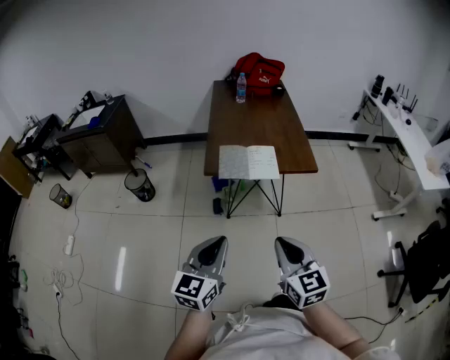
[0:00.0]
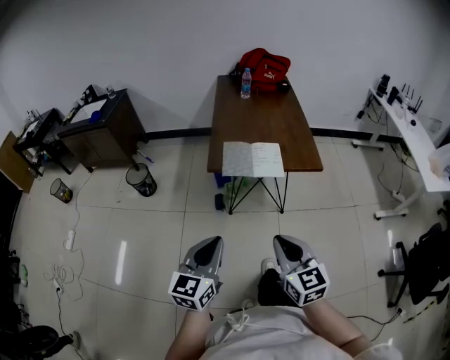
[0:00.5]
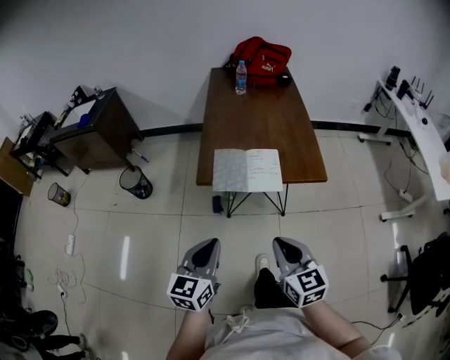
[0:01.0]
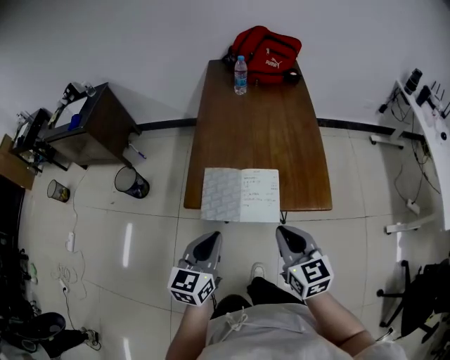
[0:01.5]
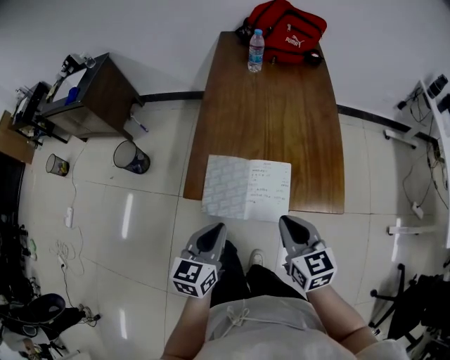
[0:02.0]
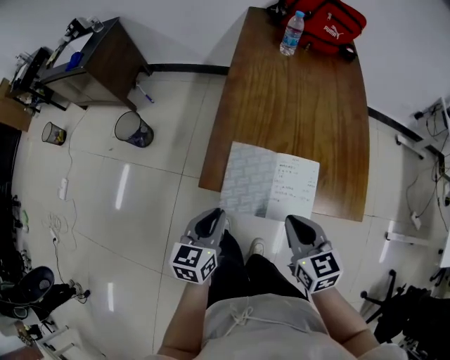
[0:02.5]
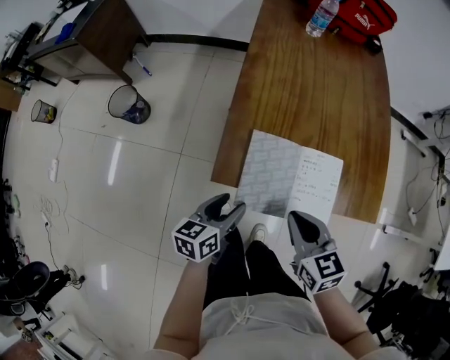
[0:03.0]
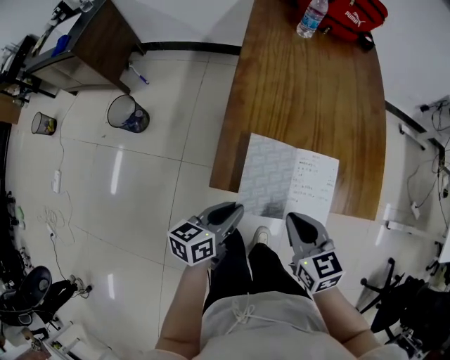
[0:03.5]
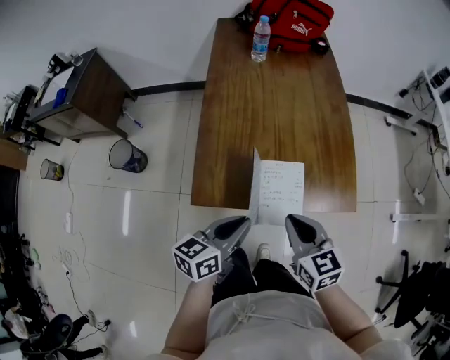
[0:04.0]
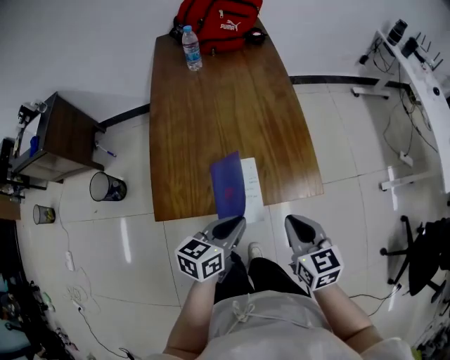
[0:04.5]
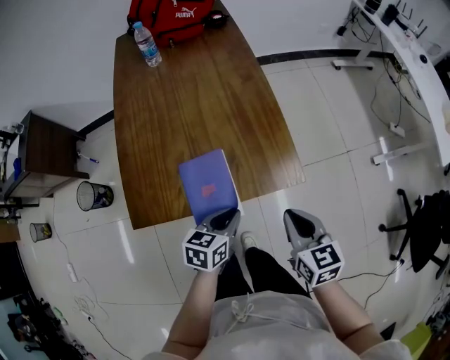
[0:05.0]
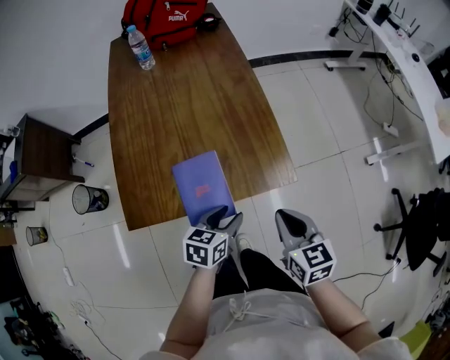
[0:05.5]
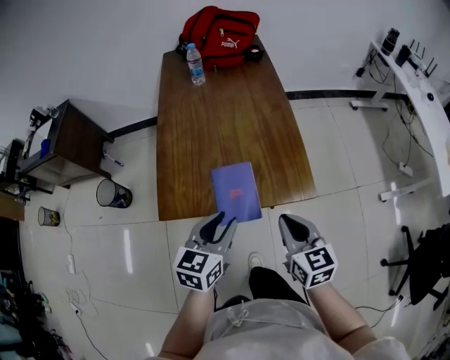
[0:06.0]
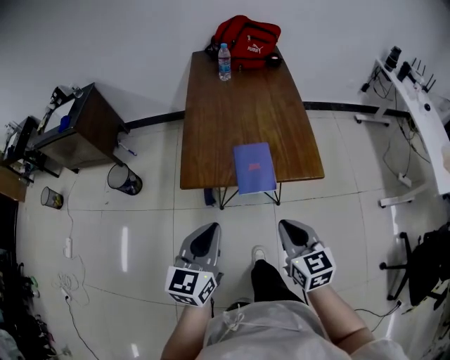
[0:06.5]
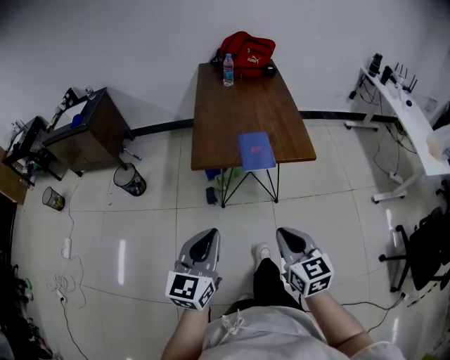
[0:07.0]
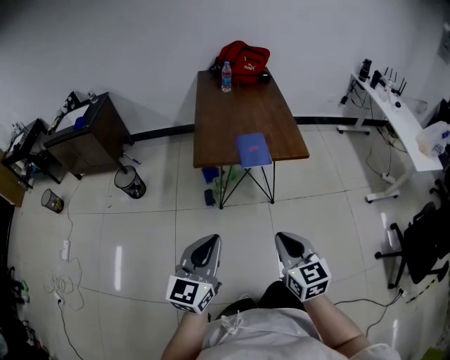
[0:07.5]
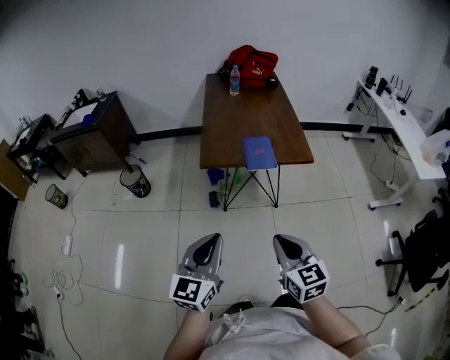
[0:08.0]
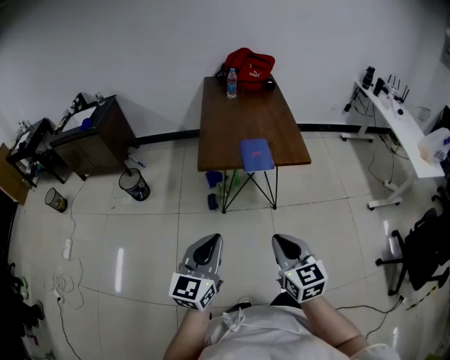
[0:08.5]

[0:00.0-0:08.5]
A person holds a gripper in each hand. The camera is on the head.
0.0 to 2.0 s: The two grippers go about 35 cm forward. The left gripper turns by approximately 20 degrees.
2.0 to 4.0 s: The right gripper goes to the left and returns, about 10 cm each way; the left gripper travels downward and back again, roughly 15 cm each way, turns by some 30 degrees, and opens, then closes again.
4.0 to 6.5 s: The left gripper is displaced backward and upward by some 20 cm, changes its angle by approximately 30 degrees, and opens and closes again. The right gripper shifts roughly 20 cm backward and to the right.
6.5 to 8.5 s: The two grippers go roughly 25 cm backward.

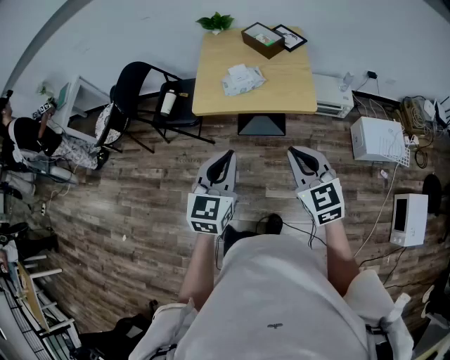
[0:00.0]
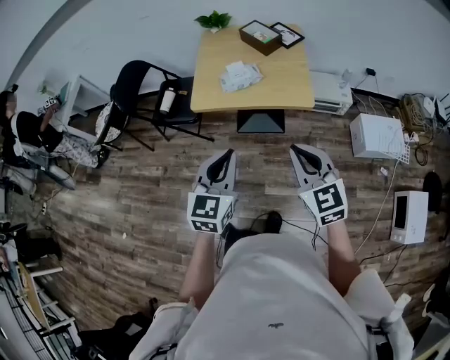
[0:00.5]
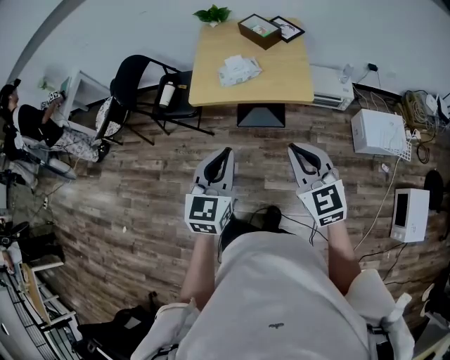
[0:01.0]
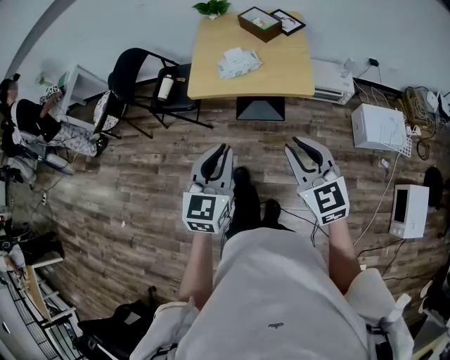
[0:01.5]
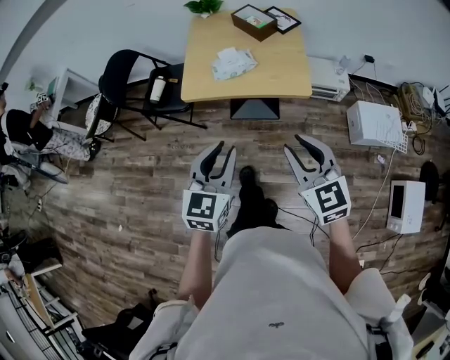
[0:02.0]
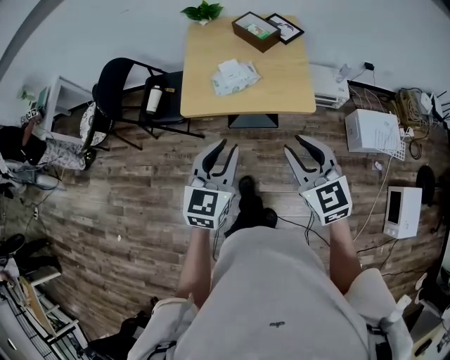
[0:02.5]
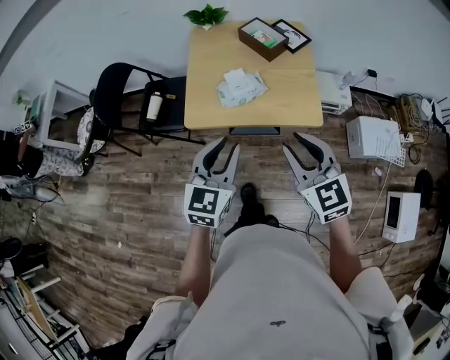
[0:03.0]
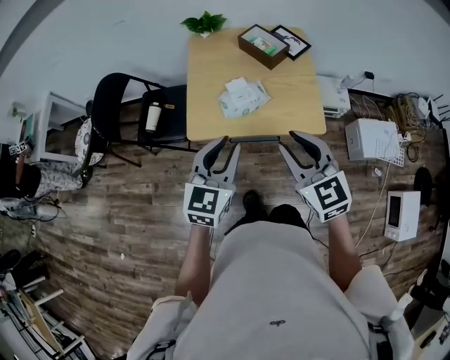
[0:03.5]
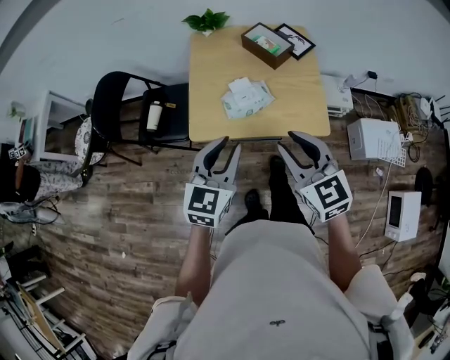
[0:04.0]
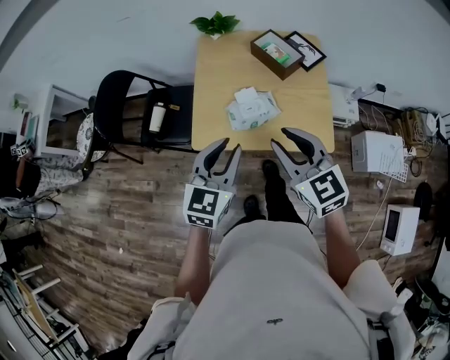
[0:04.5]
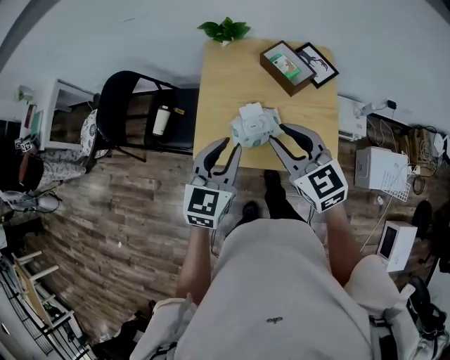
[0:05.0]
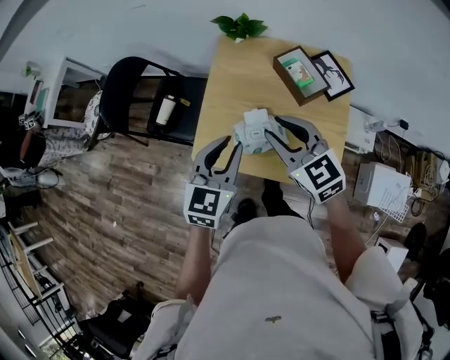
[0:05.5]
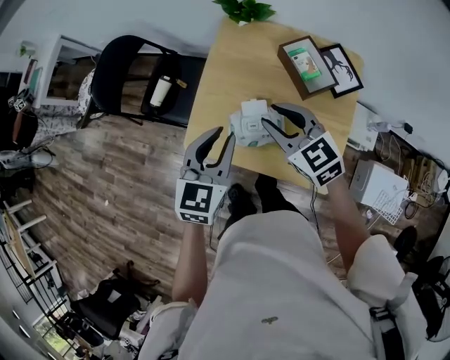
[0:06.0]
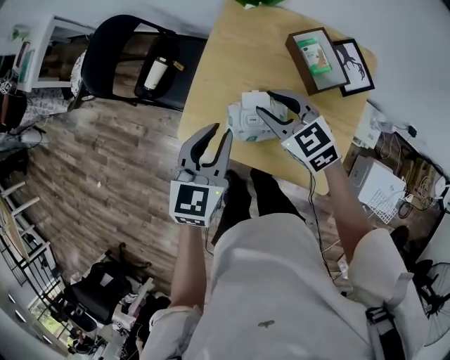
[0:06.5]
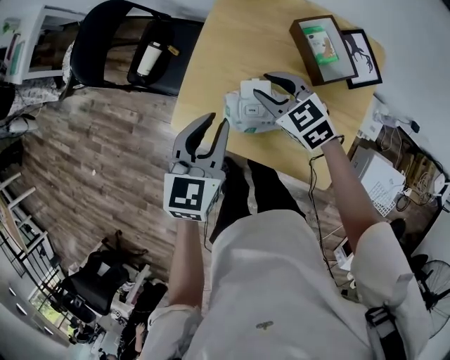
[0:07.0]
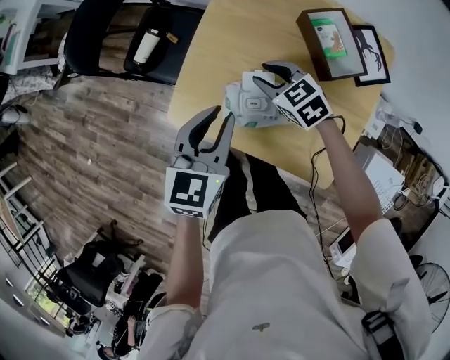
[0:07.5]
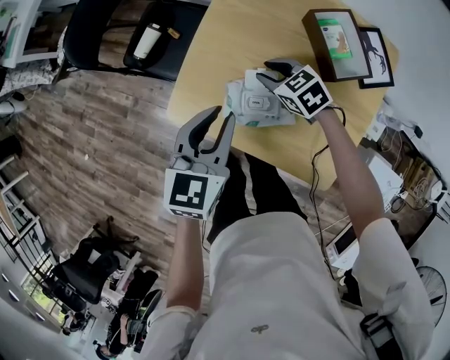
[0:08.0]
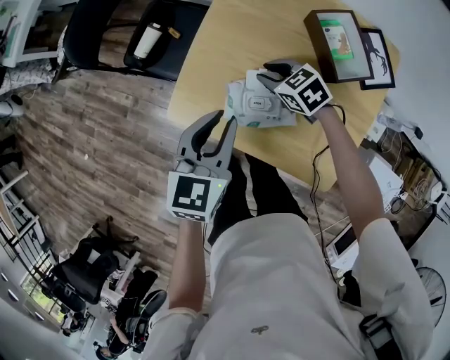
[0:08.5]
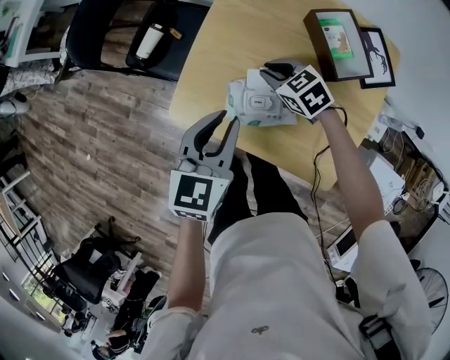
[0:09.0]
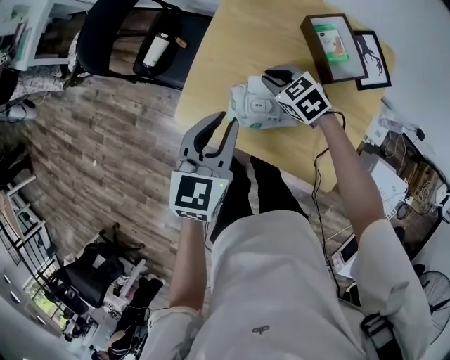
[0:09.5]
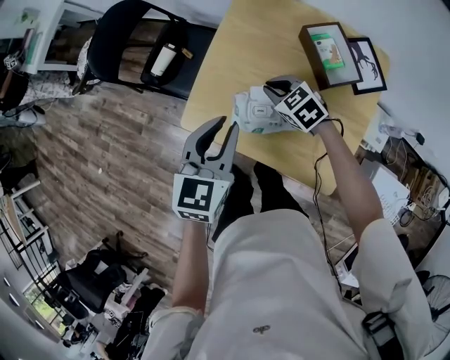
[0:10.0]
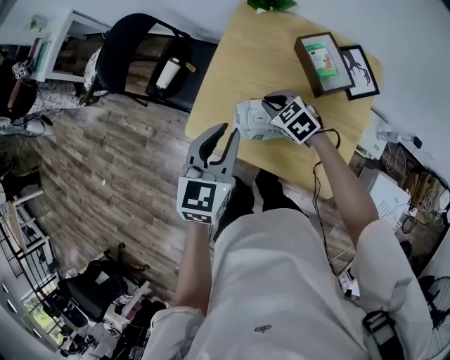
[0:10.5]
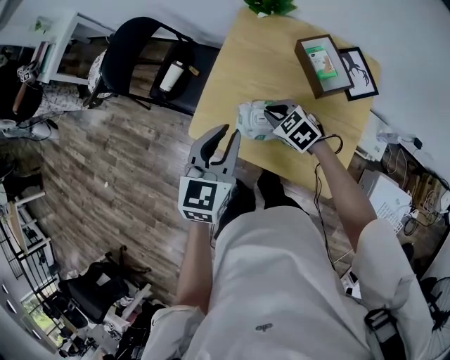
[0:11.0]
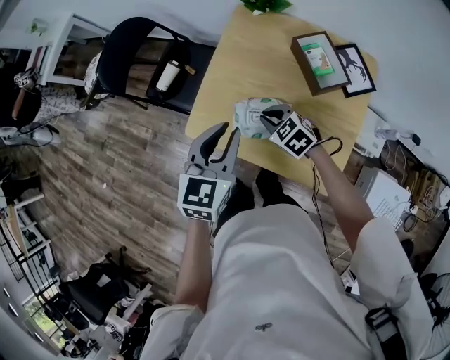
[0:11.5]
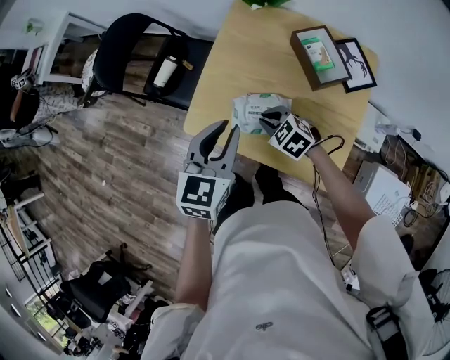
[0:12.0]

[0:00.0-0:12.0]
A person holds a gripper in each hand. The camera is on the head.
0.0 to 2.0 s: The right gripper opens its fingers.
2.0 to 4.0 s: The left gripper is displaced forward by roughly 25 cm. The right gripper travels forward and to the left by some 25 cm.
4.0 to 6.0 s: The left gripper moves roughly 20 cm, and turns by about 20 degrees; the right gripper changes place by about 30 cm, and swivels approximately 30 degrees.
6.0 to 8.0 s: The left gripper is displaced downward by roughly 10 cm, while the right gripper heads downward, covering about 25 cm, and turns by about 30 degrees.
8.0 to 10.0 s: The left gripper changes place by approximately 5 cm; the right gripper closes its fingers.
10.0 to 12.0 s: The right gripper goes some 10 cm backward.

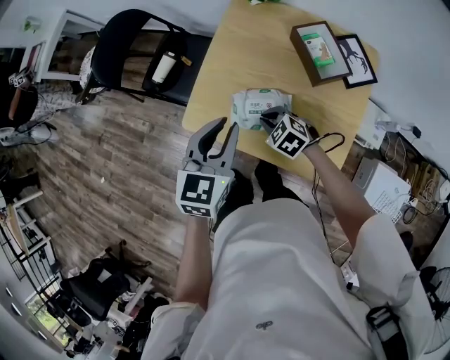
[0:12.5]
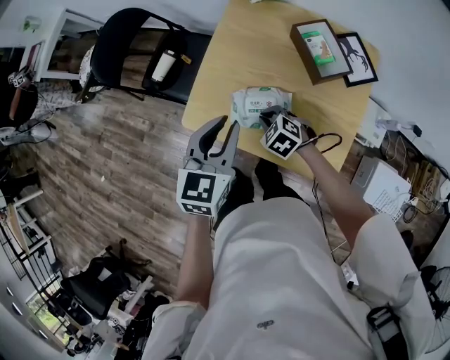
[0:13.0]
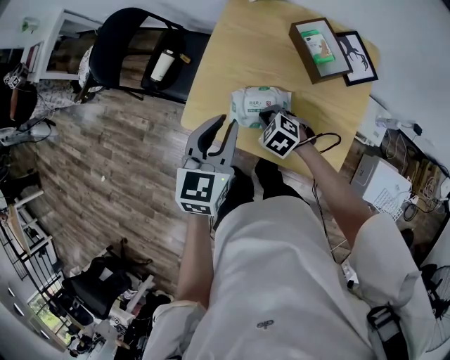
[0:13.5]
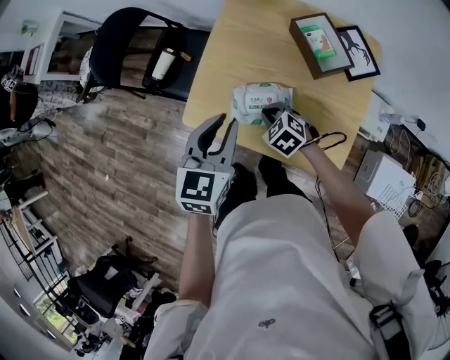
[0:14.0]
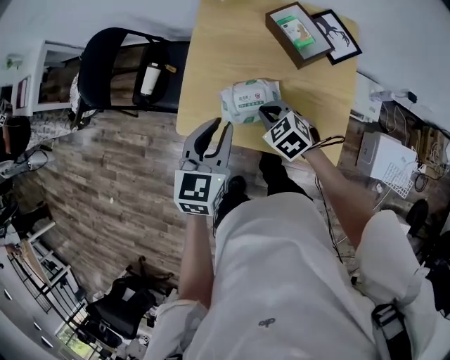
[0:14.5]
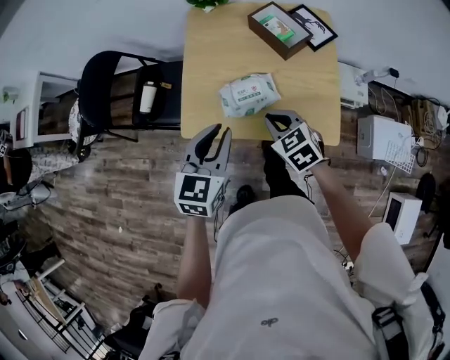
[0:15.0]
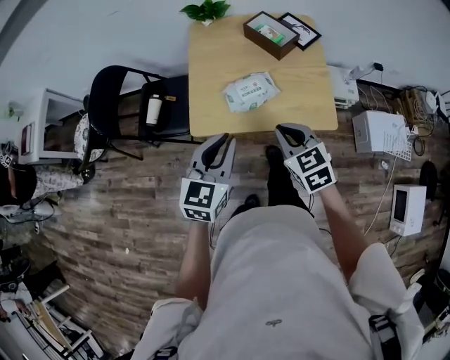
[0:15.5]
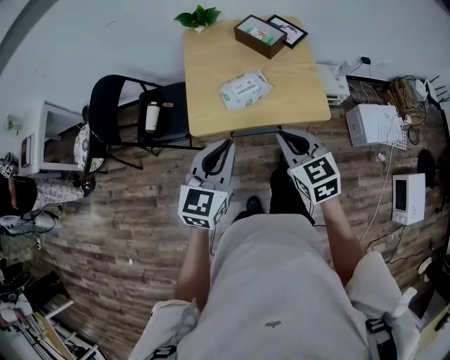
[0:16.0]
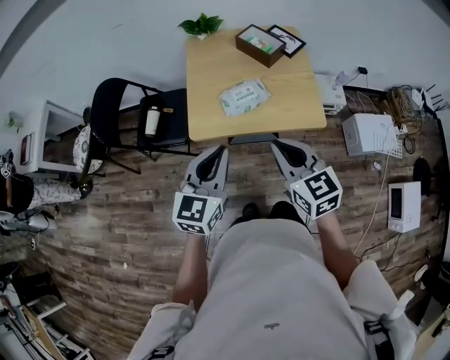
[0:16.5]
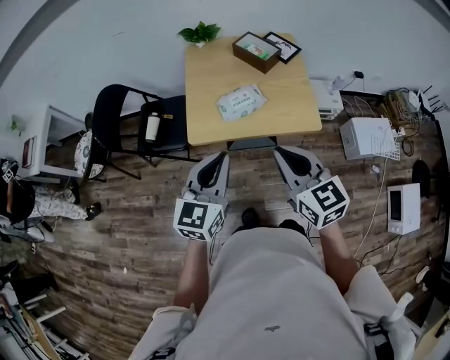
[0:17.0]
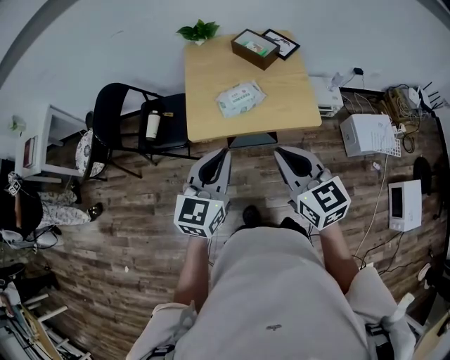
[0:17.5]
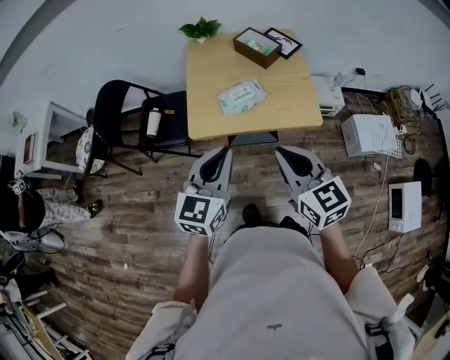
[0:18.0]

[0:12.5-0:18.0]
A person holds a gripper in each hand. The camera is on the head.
12.5 to 14.5 s: The right gripper changes place by approximately 5 cm.
14.5 to 16.0 s: The left gripper ends up some 25 cm from where it was, and changes its angle by approximately 30 degrees. Meanwhile the right gripper moves roughly 30 cm, and turns by approximately 40 degrees.
16.0 to 18.0 s: The right gripper heads upward and backward, covering approximately 10 cm. The left gripper shifts by approximately 5 cm.

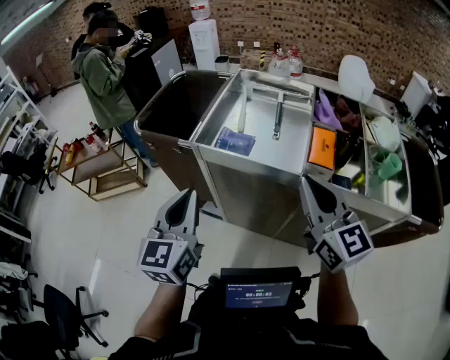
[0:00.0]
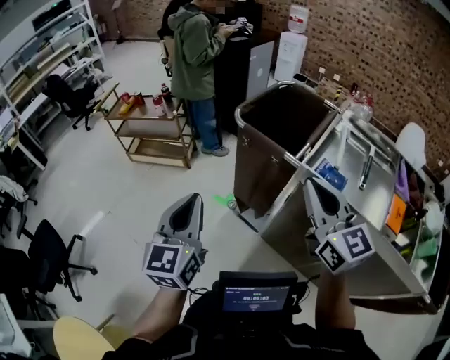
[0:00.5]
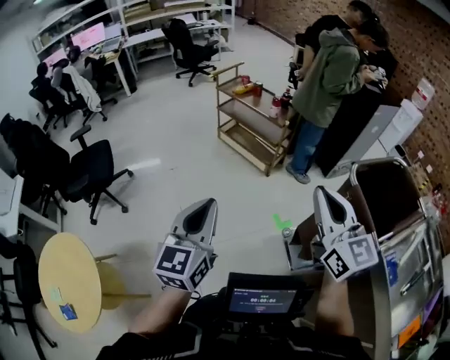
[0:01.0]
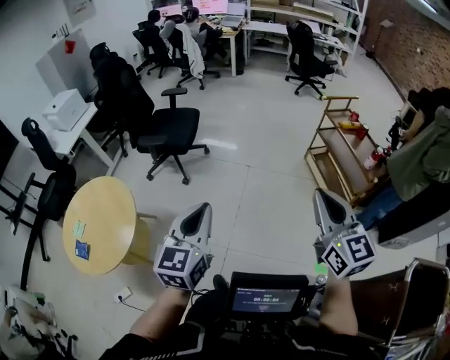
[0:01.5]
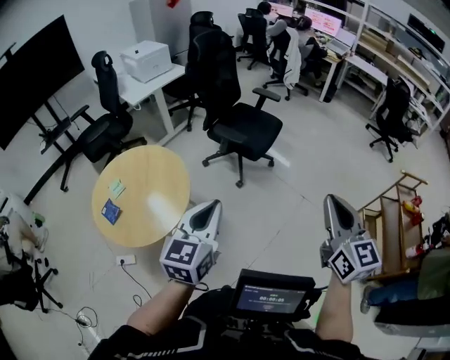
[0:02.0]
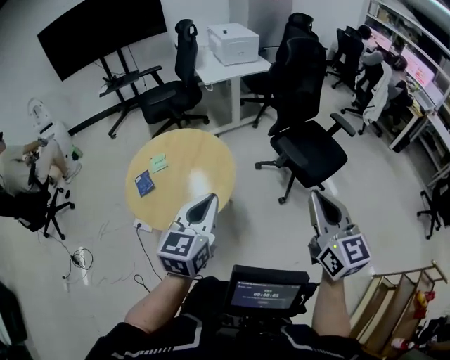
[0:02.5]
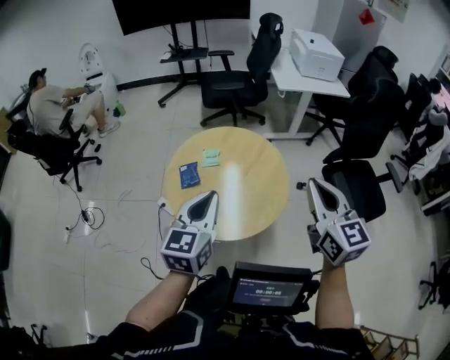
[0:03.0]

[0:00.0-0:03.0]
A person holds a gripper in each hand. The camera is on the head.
0.0 to 1.5 s: The pair of grippers is taken some 1 m. The left gripper turns by about 80 degrees, while the right gripper rotates about 80 degrees.
1.5 to 3.0 s: Both grippers are carried approximately 1 m. The left gripper turns by roughly 70 degrees; the right gripper rotates some 70 degrees.
